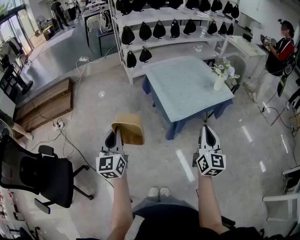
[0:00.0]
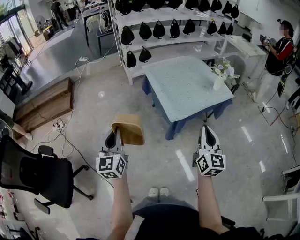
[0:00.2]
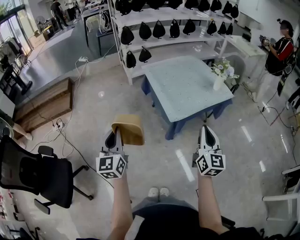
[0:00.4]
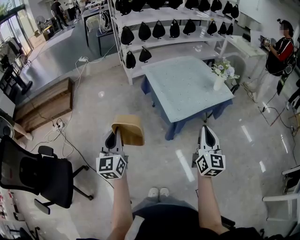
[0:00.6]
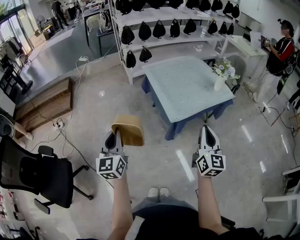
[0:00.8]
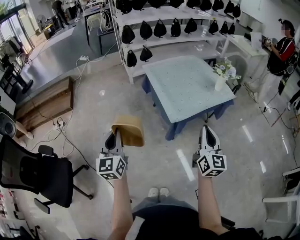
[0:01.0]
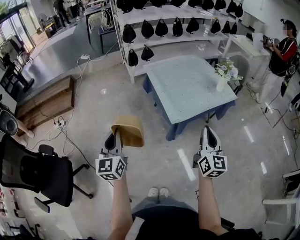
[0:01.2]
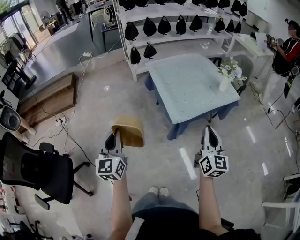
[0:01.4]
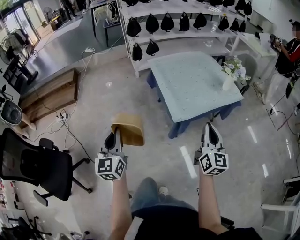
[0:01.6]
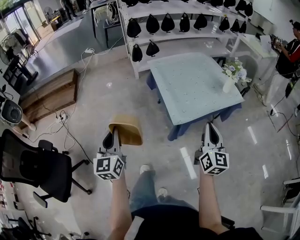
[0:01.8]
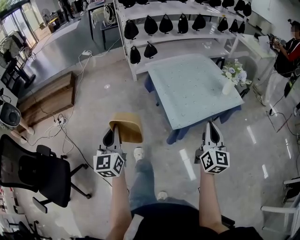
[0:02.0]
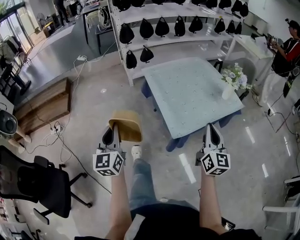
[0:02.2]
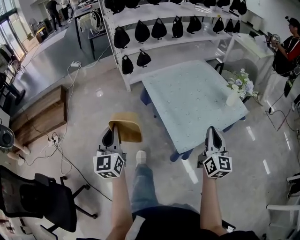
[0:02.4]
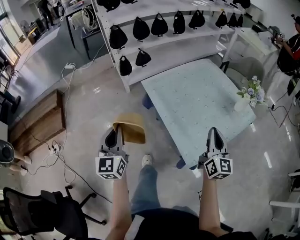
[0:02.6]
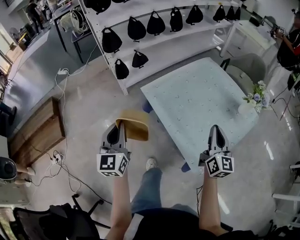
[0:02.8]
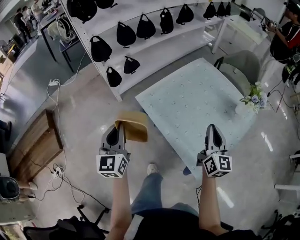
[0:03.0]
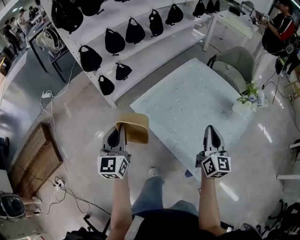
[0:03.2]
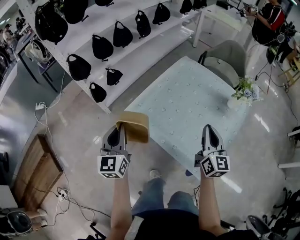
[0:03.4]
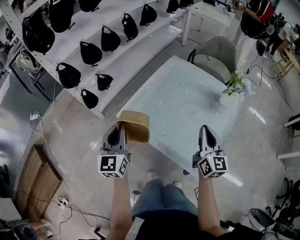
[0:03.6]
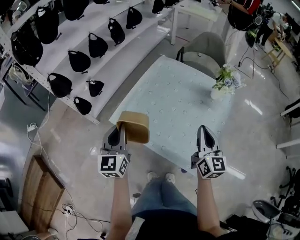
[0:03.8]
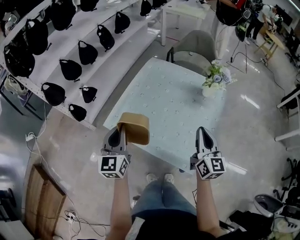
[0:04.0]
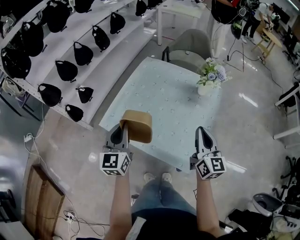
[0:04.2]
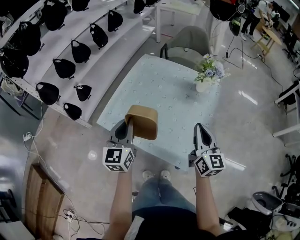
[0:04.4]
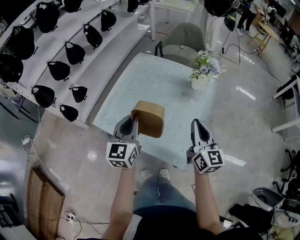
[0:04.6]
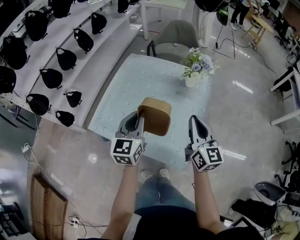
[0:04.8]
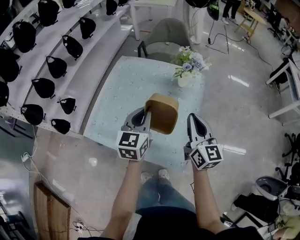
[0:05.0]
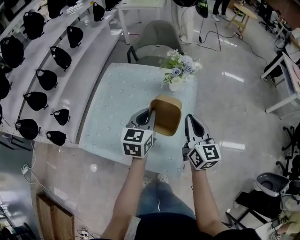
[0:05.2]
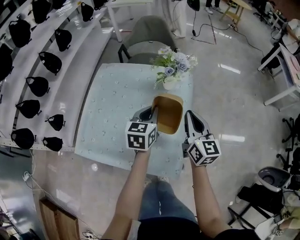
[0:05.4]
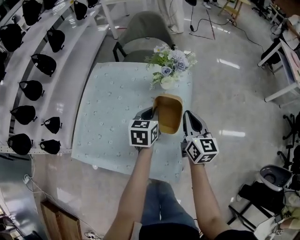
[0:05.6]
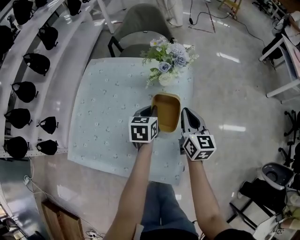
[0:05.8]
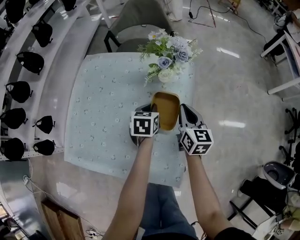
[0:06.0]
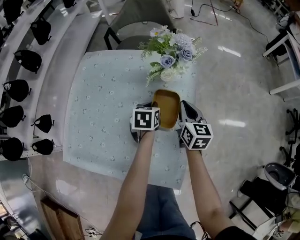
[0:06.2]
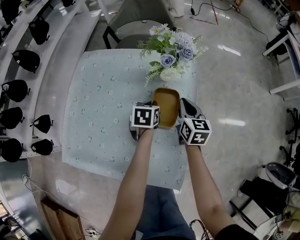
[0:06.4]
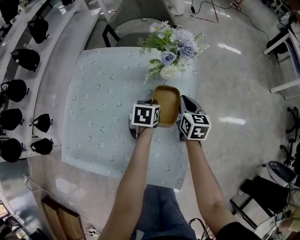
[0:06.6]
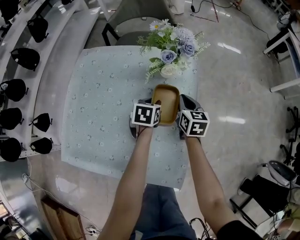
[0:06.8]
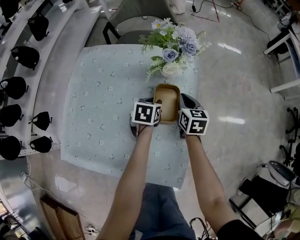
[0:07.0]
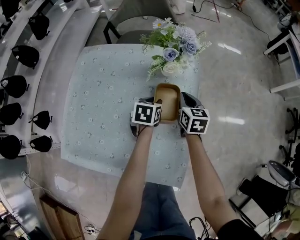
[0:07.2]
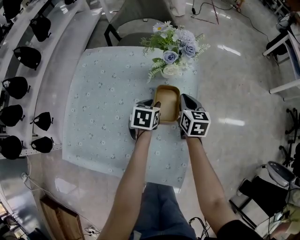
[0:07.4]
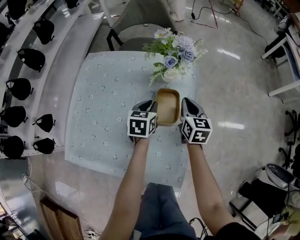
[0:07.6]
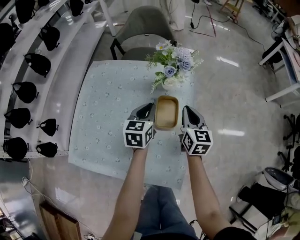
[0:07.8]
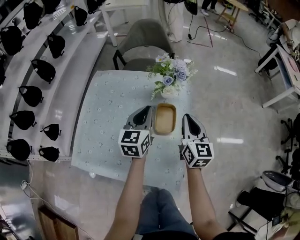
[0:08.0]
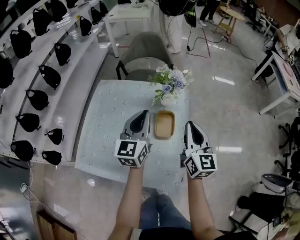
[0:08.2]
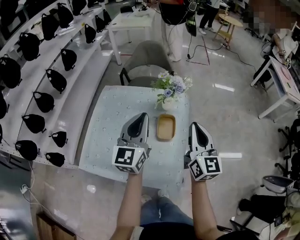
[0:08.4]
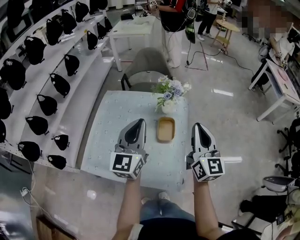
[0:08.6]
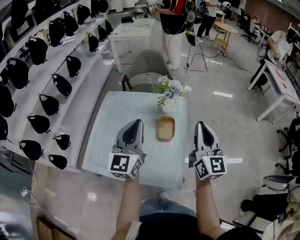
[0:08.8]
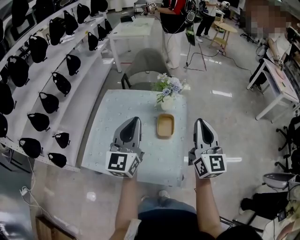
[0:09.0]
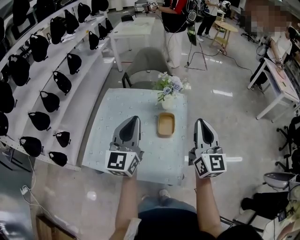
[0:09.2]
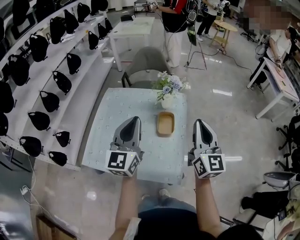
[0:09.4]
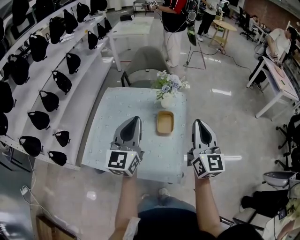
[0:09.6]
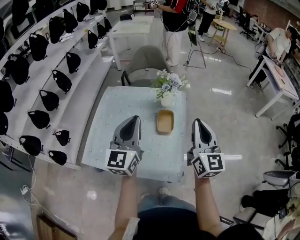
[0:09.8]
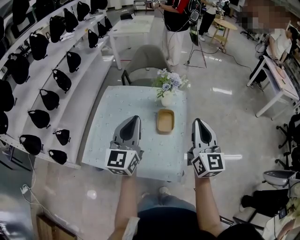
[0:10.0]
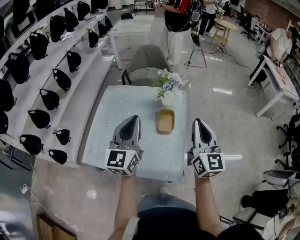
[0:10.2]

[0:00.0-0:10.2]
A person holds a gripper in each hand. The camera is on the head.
0.0 to 1.4 s: The grippers stay close to where they were, moving slightly.
1.4 to 3.0 s: The pair of grippers is taken forward, some 50 cm. The left gripper changes its angle by approximately 20 degrees.
3.0 to 4.4 s: The left gripper changes place by about 25 cm, and turns by roughly 30 degrees, while the right gripper changes place by roughly 10 cm.
4.4 to 5.8 s: The right gripper is displaced forward, downward and to the right by approximately 25 cm. Meanwhile the left gripper shifts approximately 40 cm to the right, forward and downward, and points its fingers about 30 degrees further downward.
5.8 to 7.2 s: The right gripper heads downward and forward, covering about 15 cm. The left gripper heads downward, covering some 10 cm, and opens its fingers.
7.2 to 8.8 s: Both grippers travel together upward and backward, about 40 cm. The right gripper angles its fingers upward, by approximately 40 degrees, while the left gripper tilts its fingers about 60 degrees upward, and closes up.
8.8 to 10.2 s: The grippers move only a little.

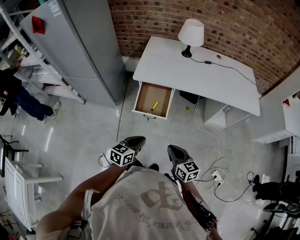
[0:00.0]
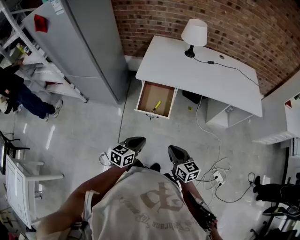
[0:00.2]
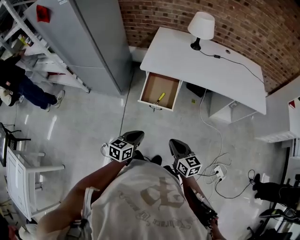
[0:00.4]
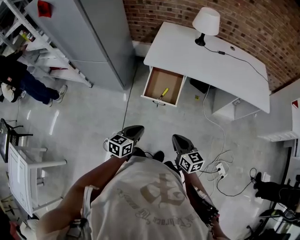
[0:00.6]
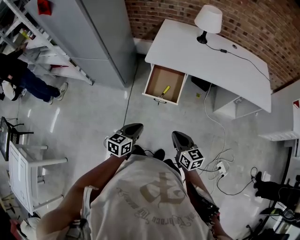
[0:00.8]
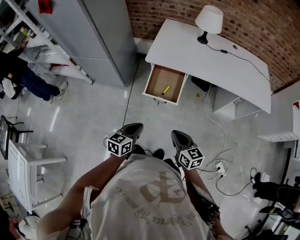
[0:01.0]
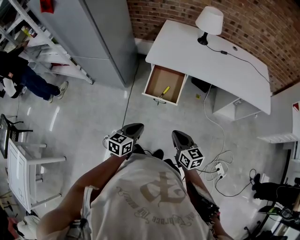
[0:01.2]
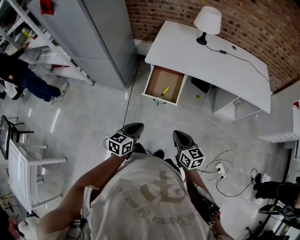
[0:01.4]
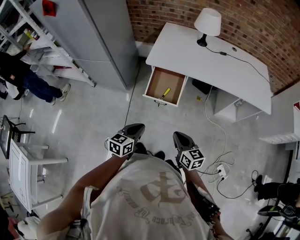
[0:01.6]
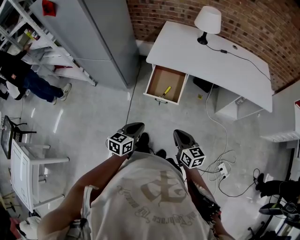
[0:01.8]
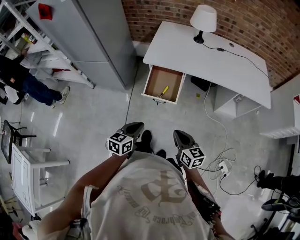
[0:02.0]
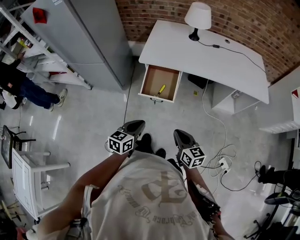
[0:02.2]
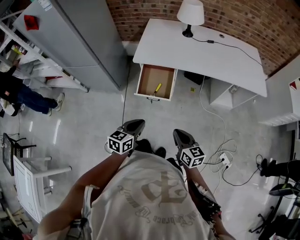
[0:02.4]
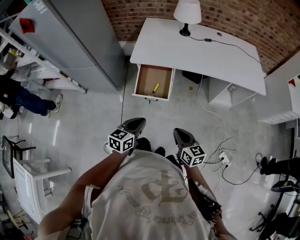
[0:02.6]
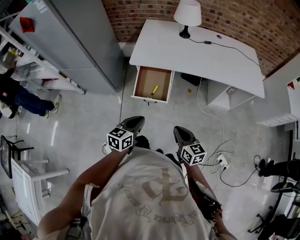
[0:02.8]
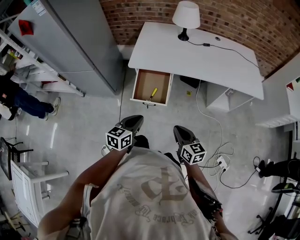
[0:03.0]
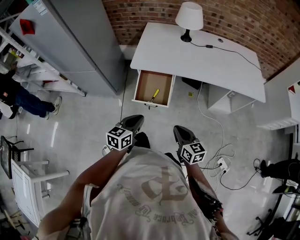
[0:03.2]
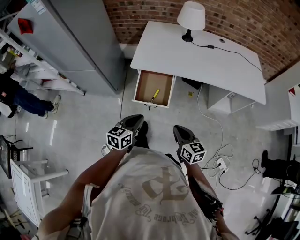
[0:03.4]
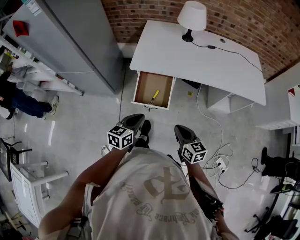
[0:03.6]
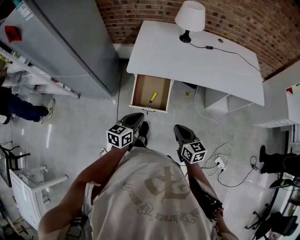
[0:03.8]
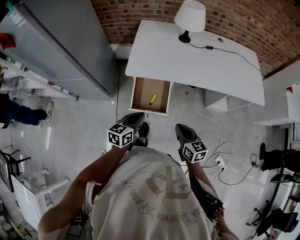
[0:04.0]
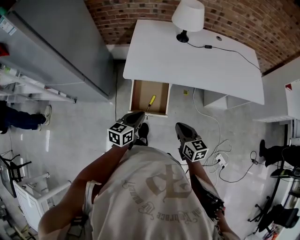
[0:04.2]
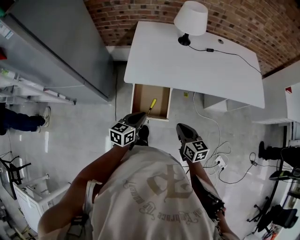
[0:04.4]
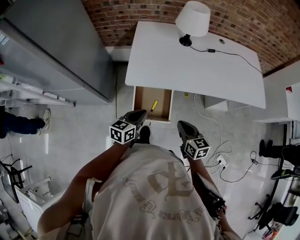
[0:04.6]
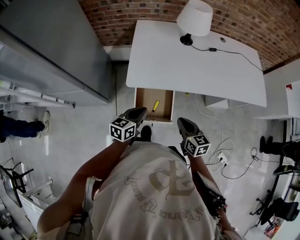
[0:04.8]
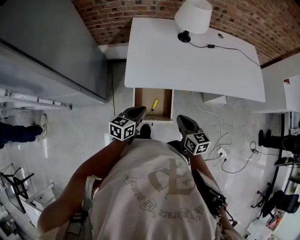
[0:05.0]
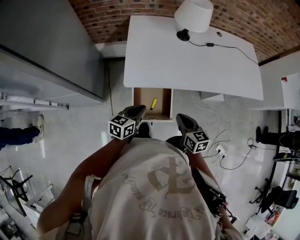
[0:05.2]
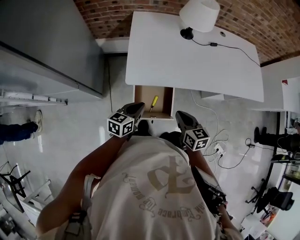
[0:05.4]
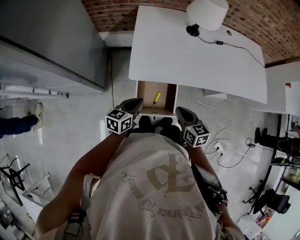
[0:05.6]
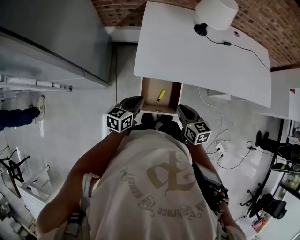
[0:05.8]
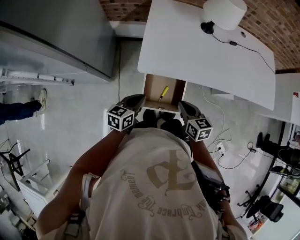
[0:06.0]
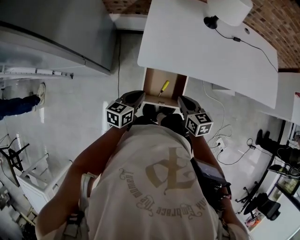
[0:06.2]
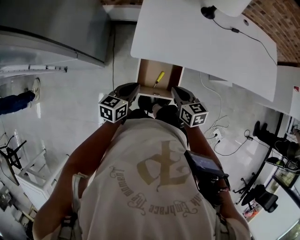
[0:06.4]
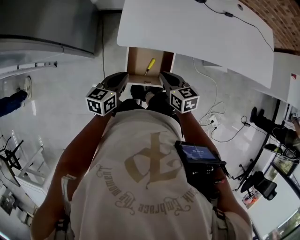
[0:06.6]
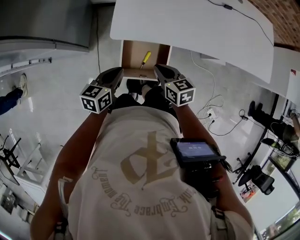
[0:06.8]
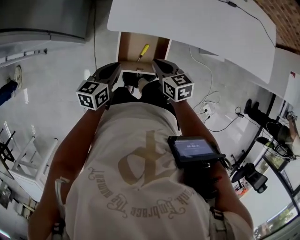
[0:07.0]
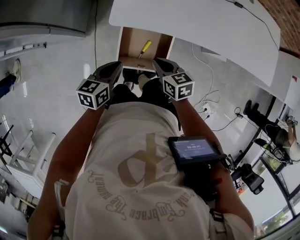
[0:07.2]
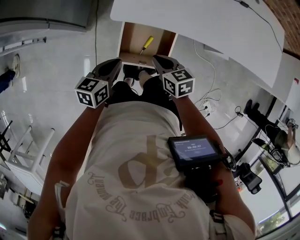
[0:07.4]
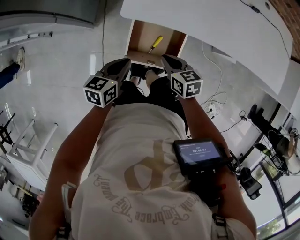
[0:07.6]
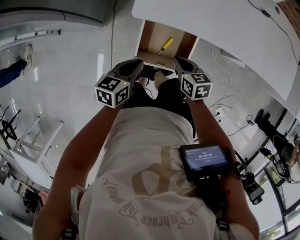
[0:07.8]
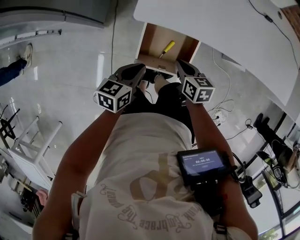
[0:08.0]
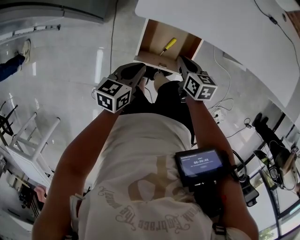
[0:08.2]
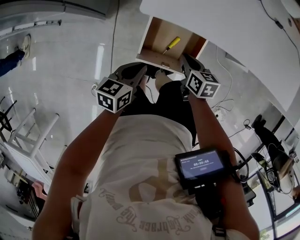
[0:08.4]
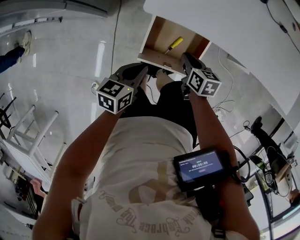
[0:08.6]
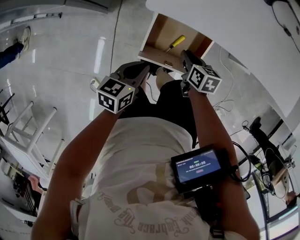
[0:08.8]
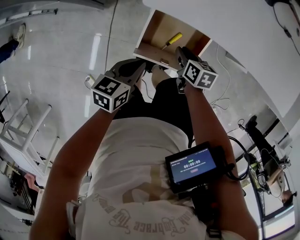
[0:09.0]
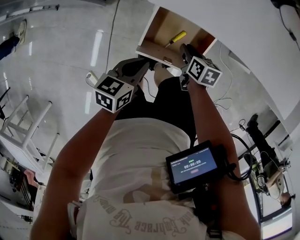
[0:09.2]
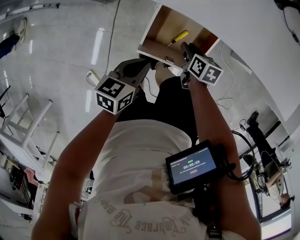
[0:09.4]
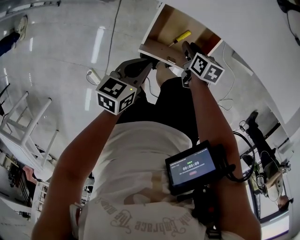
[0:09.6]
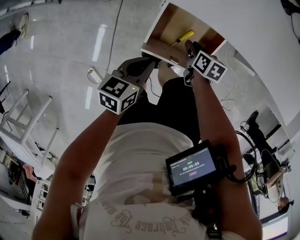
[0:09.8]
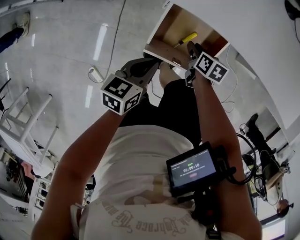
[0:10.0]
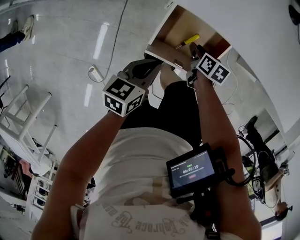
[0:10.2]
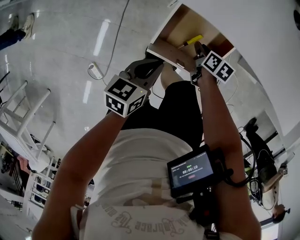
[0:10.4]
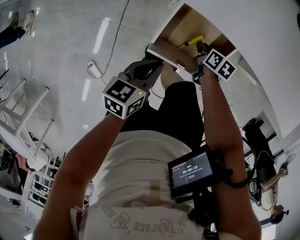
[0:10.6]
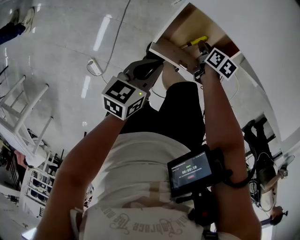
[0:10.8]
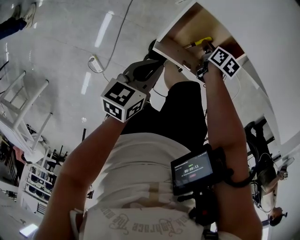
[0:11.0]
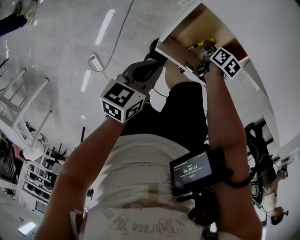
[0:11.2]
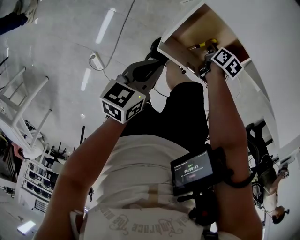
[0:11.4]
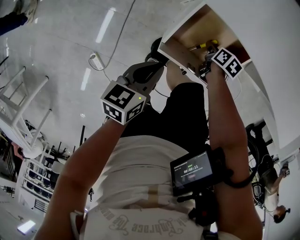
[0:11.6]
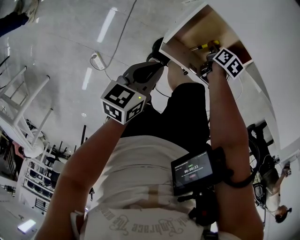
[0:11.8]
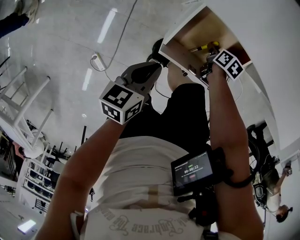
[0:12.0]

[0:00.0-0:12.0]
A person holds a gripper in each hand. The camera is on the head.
1.6 to 3.0 s: The left gripper travels forward by about 5 cm; the right gripper travels to the right by roughly 5 cm.
3.0 to 4.4 s: Both grippers move forward, about 20 cm.
4.4 to 6.0 s: The right gripper shifts about 15 cm to the left and forward; the left gripper heads to the left, forward and downward, covering roughly 15 cm.
6.0 to 7.6 s: Both grippers travel together downward, approximately 10 cm.
7.6 to 9.0 s: The right gripper shifts roughly 10 cm downward. The left gripper shifts approximately 5 cm downward.
9.0 to 10.4 s: The right gripper travels downward by some 10 cm.
10.4 to 12.0 s: The right gripper heads downward, covering roughly 10 cm; the left gripper ends up roughly 5 cm from where it was.

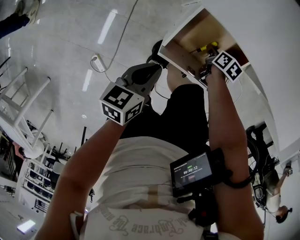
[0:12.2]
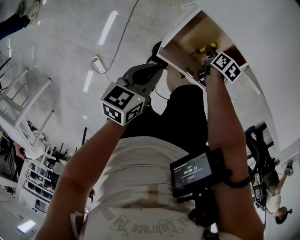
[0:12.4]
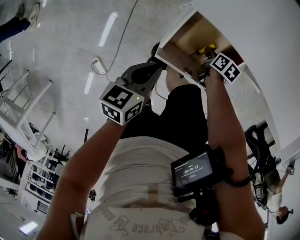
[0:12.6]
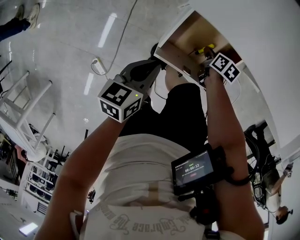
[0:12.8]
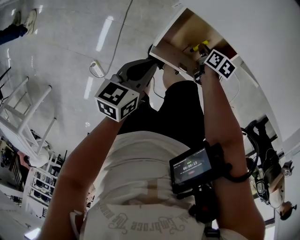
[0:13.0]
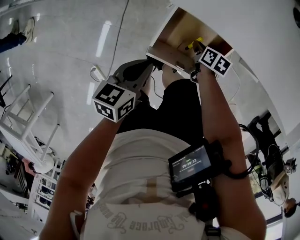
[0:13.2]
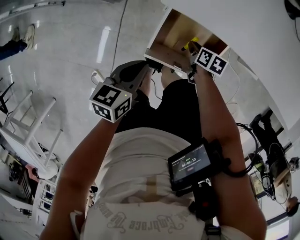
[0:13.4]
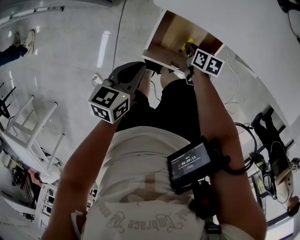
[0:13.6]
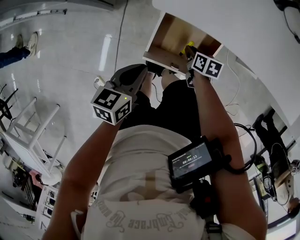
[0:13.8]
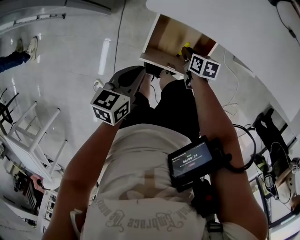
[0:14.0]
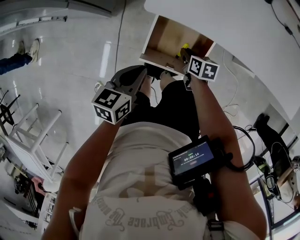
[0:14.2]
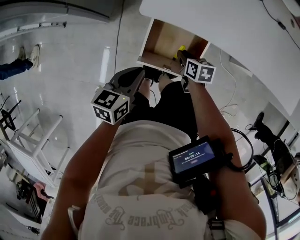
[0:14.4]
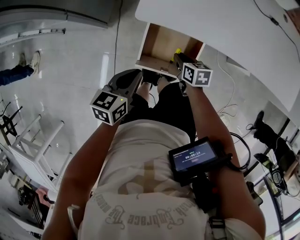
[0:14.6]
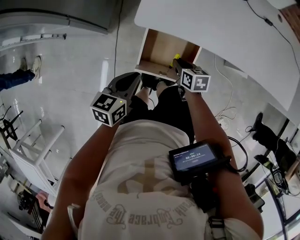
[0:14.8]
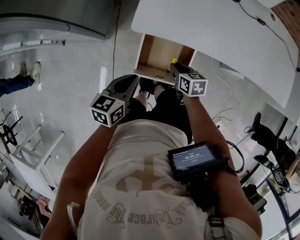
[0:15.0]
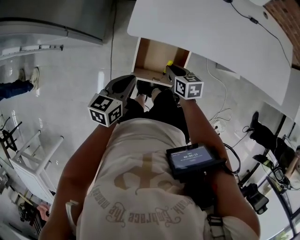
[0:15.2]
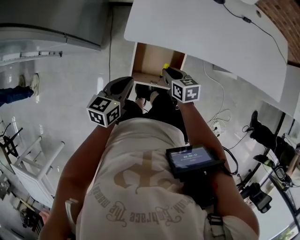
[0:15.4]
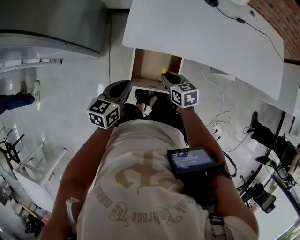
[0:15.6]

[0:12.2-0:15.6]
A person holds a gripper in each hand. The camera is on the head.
12.2 to 13.8 s: The grippers both shift upward by approximately 10 cm.
13.8 to 15.6 s: The left gripper shifts approximately 10 cm upward. Meanwhile the right gripper travels upward by some 20 cm, and rotates about 20 degrees.
